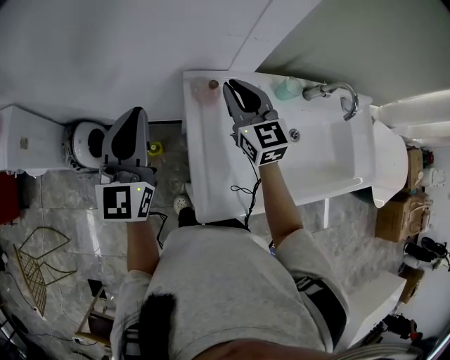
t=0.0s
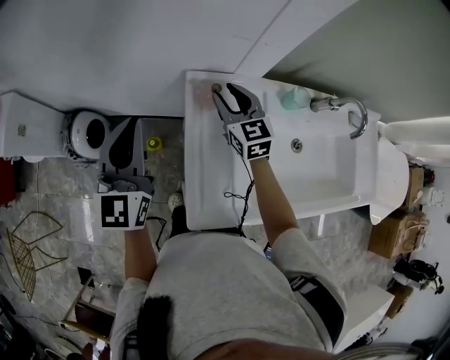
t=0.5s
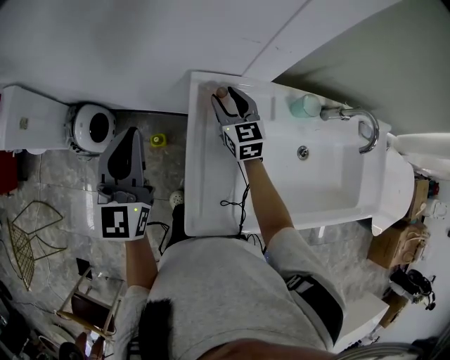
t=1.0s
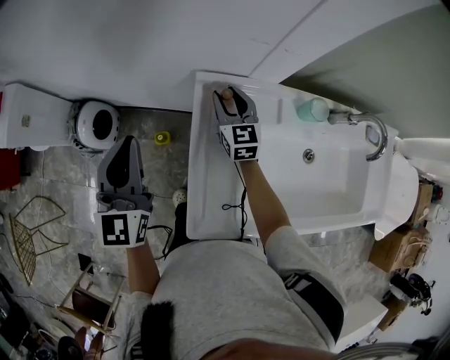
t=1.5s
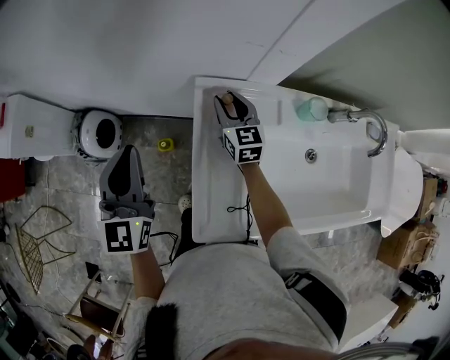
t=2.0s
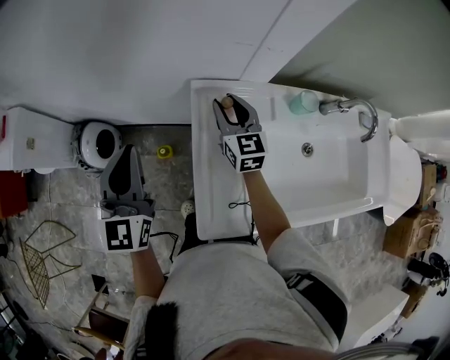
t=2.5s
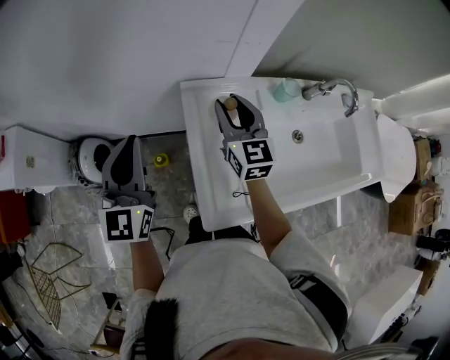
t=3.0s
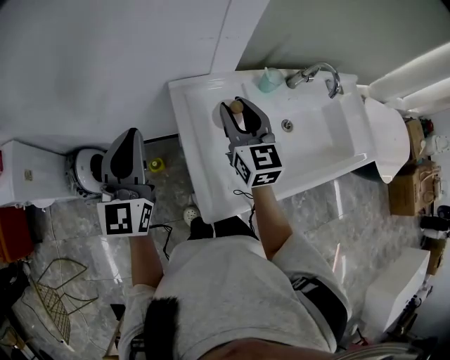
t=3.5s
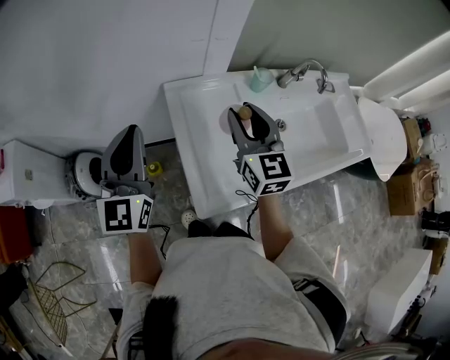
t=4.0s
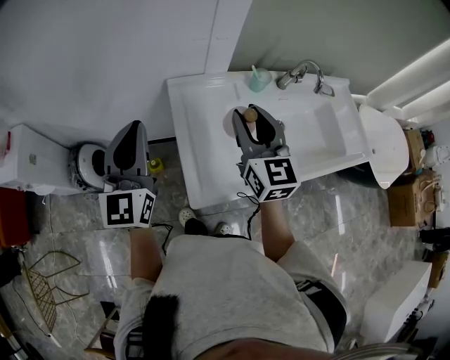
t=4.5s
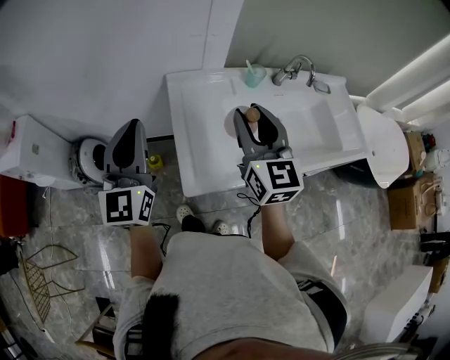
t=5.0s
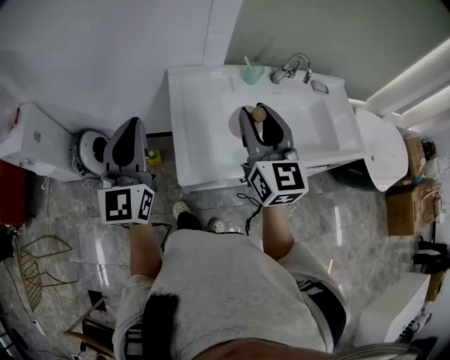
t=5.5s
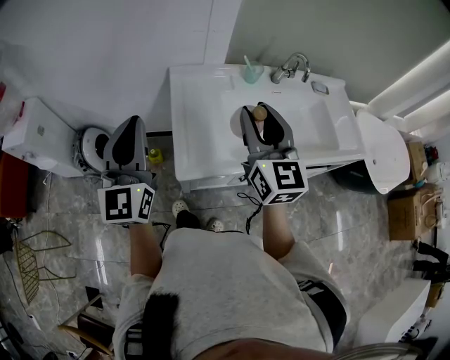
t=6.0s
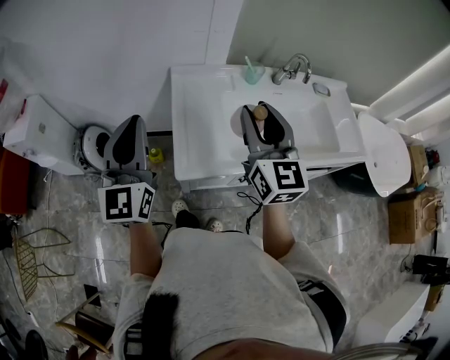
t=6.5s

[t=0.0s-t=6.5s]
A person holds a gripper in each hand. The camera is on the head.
t=0.0s to t=2.0s: The right gripper shifts some 20 cm downward and forward, and opens its fingers. The left gripper shifts roughly 5 cm downward.
t=2.0s to t=4.5s: The right gripper heads backward and upward, covering some 35 cm, and changes its angle by about 20 degrees. The left gripper travels backward, upward and to the right by some 15 cm, and swivels roughly 20 degrees.
t=4.5s to t=6.5s: Both grippers travel together backward, roughly 10 cm.

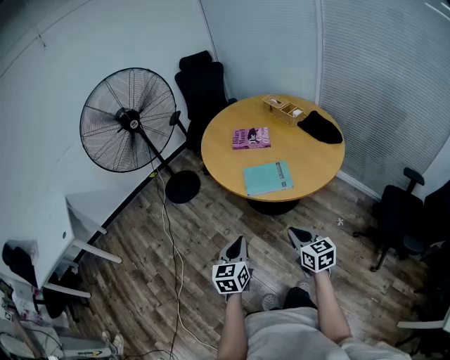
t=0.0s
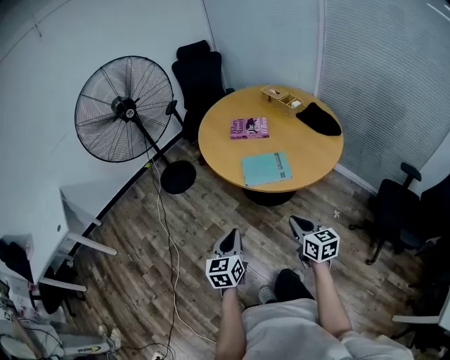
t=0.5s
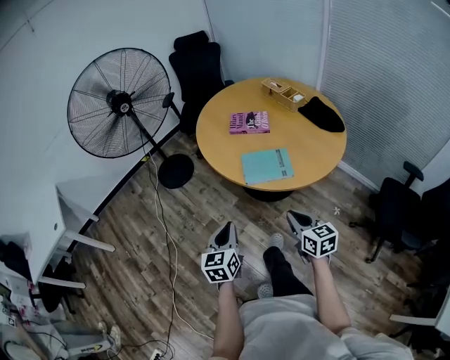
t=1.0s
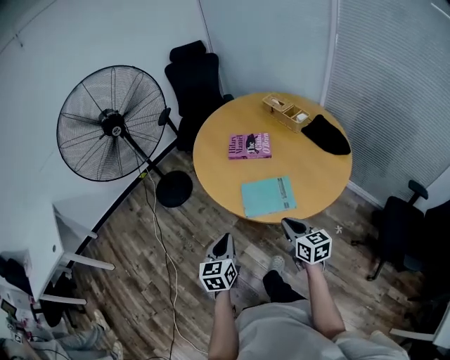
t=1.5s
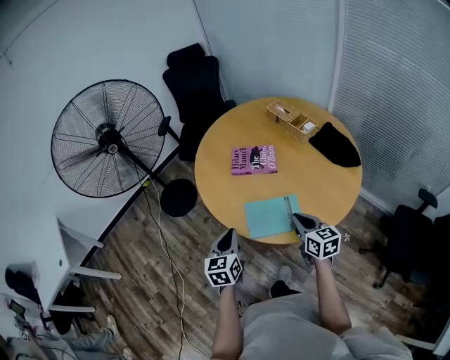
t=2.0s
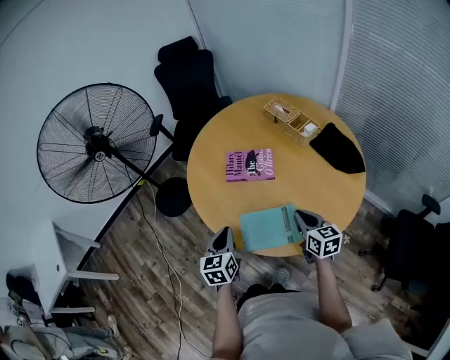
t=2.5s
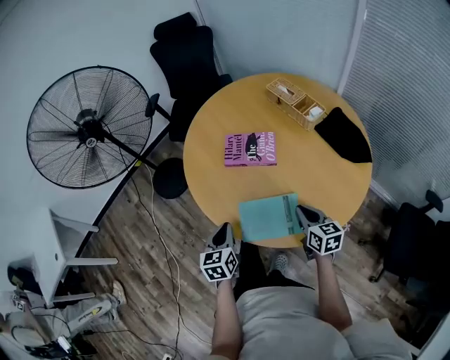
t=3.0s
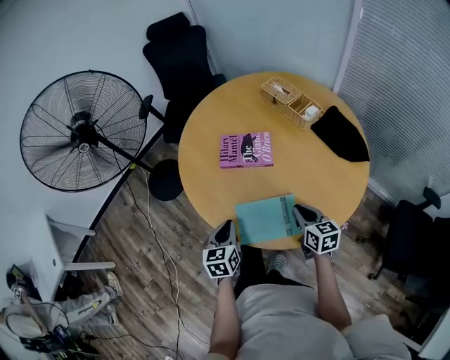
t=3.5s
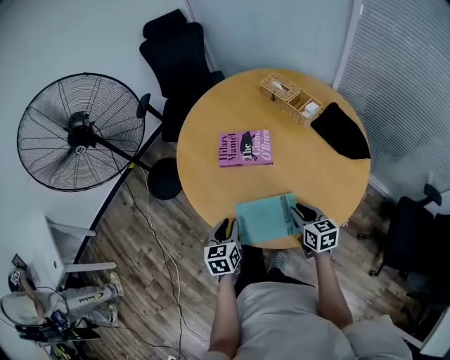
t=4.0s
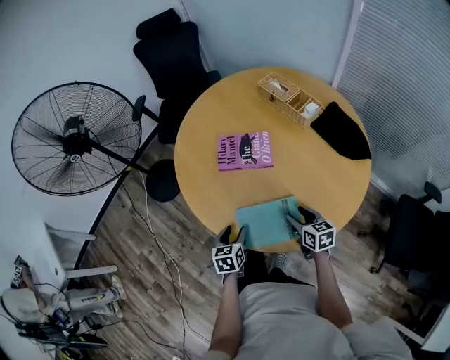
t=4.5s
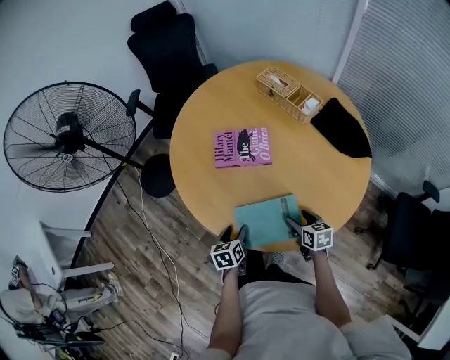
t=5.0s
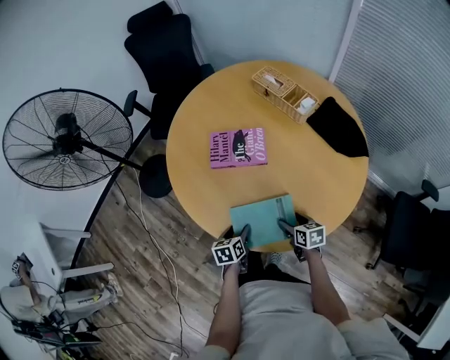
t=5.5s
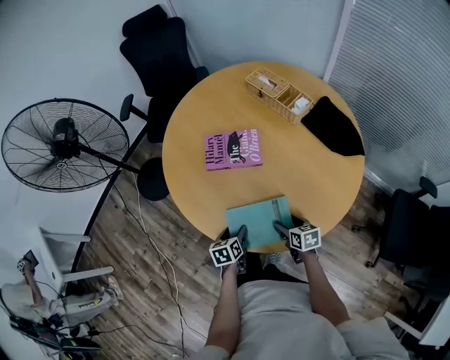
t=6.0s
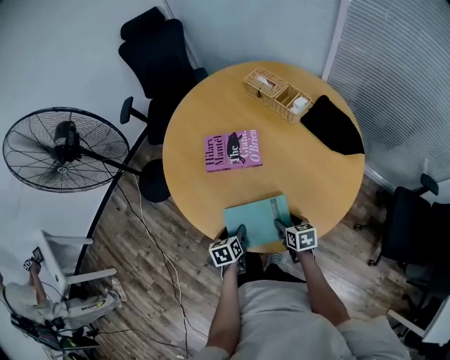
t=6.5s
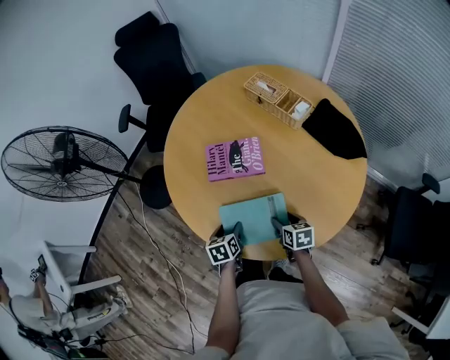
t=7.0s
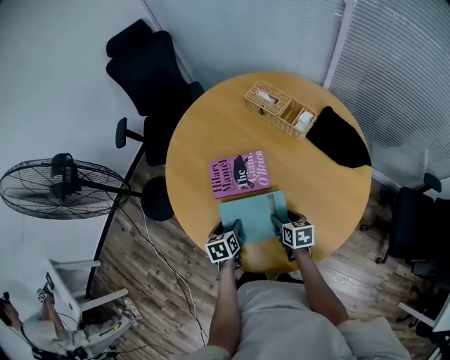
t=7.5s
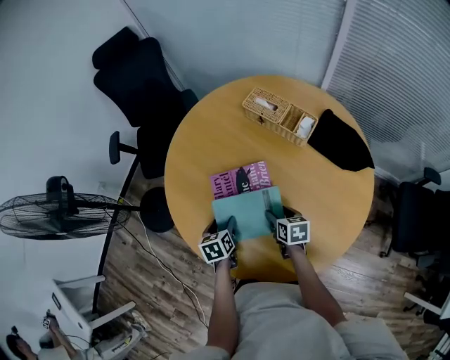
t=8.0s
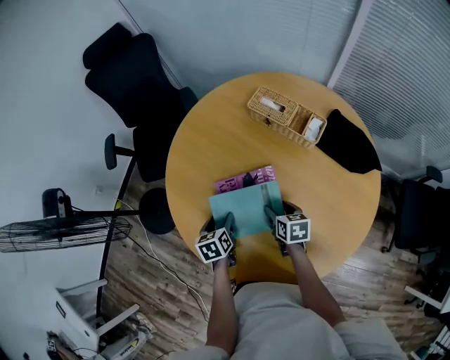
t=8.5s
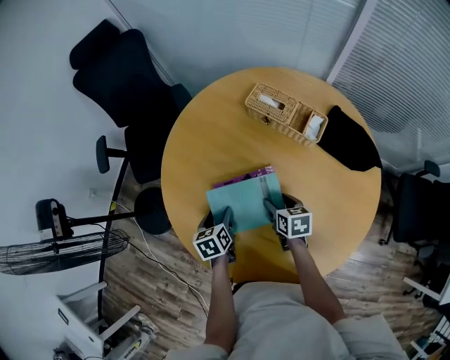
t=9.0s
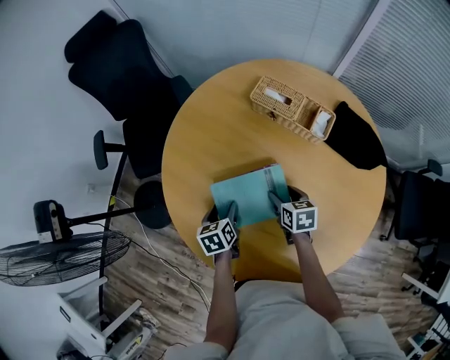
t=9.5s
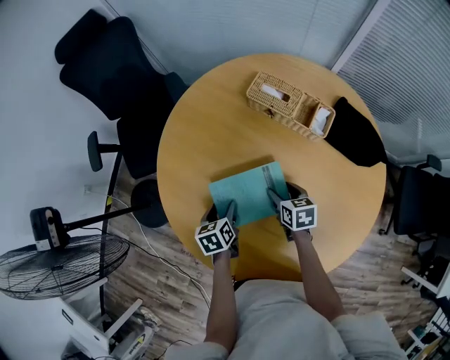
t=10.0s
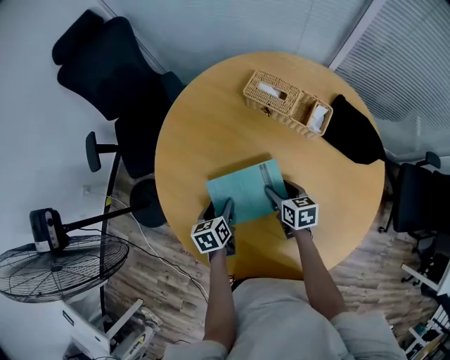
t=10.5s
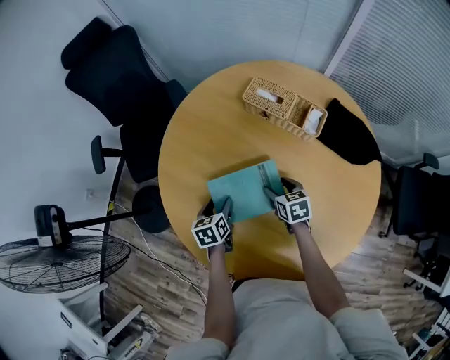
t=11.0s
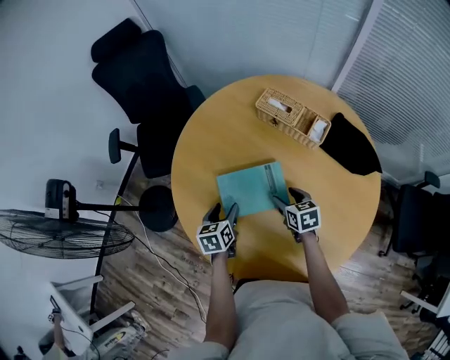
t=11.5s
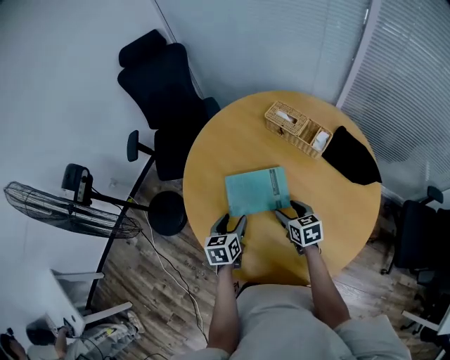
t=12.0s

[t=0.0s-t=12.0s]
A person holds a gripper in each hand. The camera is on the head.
t=0.0s to t=2.0s: Both grippers travel together forward, about 30 cm.
t=2.0s to t=4.0s: Both grippers travel together downward and forward, about 15 cm.
t=4.0s to t=6.0s: The grippers both shift downward by approximately 15 cm. The left gripper swivels about 20 degrees, and opens, while the right gripper opens.
t=6.0s to t=8.0s: The grippers both shift forward by some 20 cm.
t=8.0s to t=10.0s: The grippers both shift forward by roughly 10 cm.
t=10.0s to t=12.0s: The right gripper moves backward and upward, about 10 cm, while the left gripper shifts some 15 cm upward and backward.

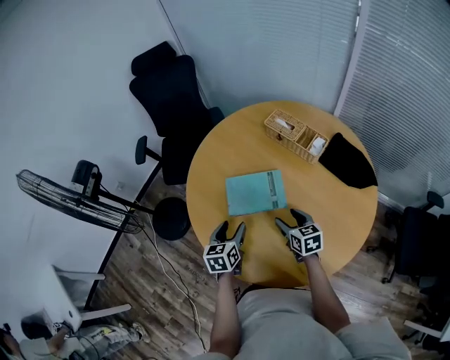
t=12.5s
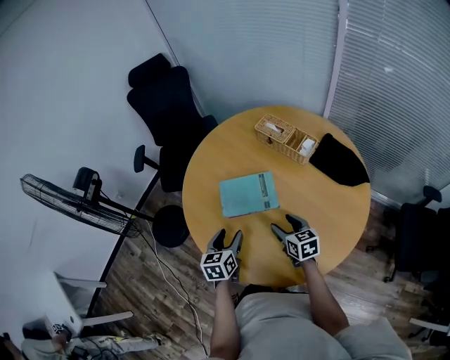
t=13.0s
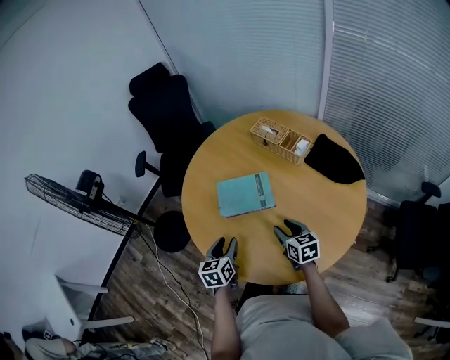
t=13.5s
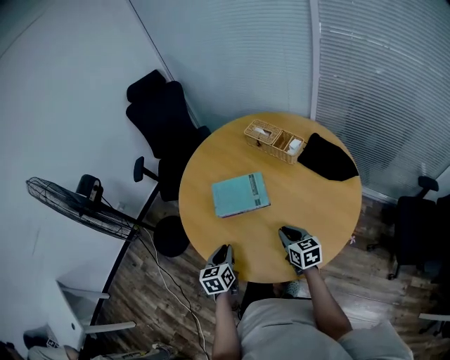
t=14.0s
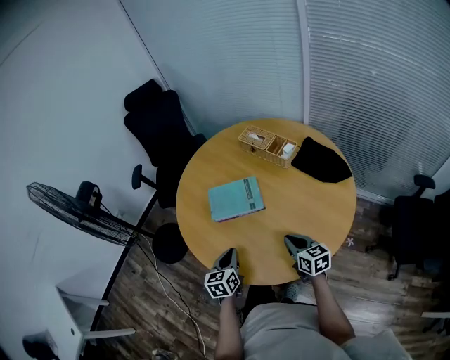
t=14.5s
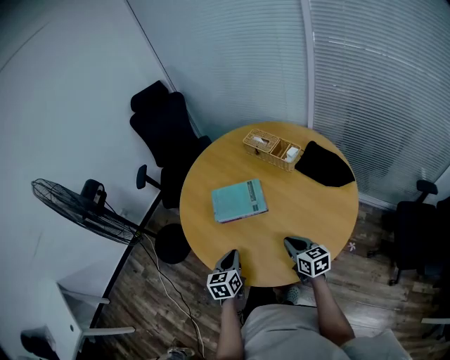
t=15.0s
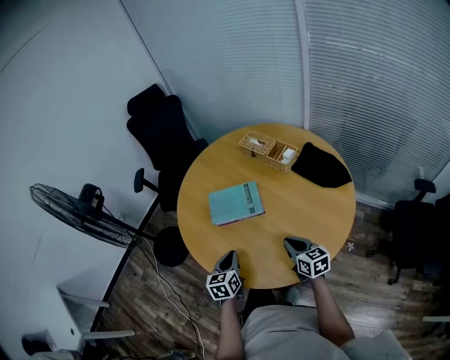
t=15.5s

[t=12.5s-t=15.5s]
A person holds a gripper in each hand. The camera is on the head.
t=12.5s to t=14.0s: The grippers both shift backward by roughly 10 cm. The right gripper closes; the left gripper closes up.
t=14.0s to t=15.5s: The grippers move only a little.

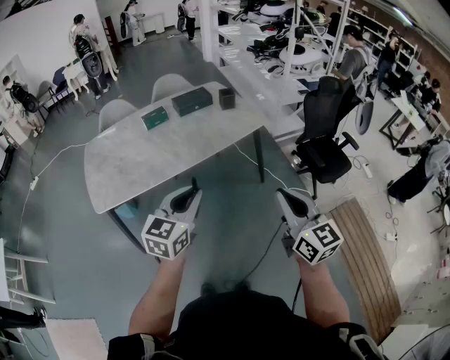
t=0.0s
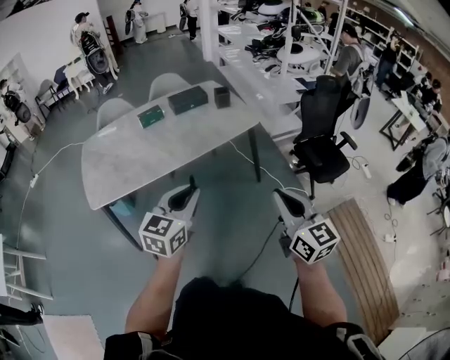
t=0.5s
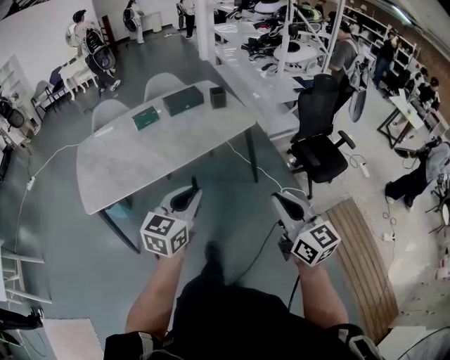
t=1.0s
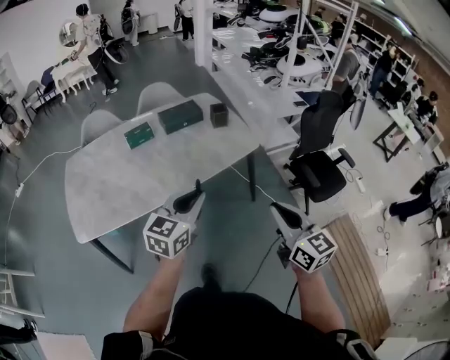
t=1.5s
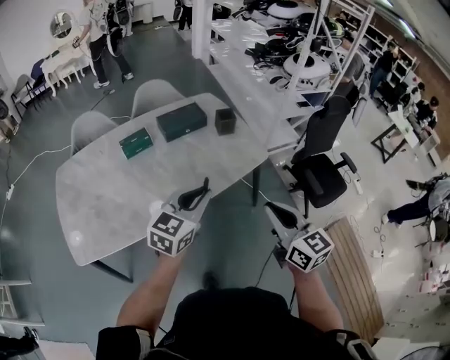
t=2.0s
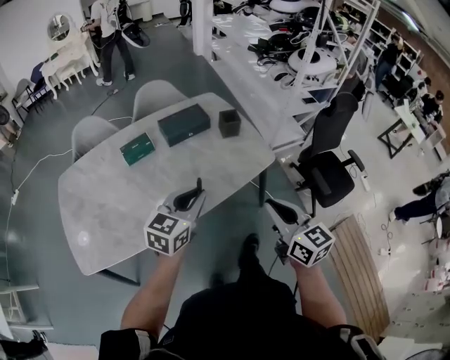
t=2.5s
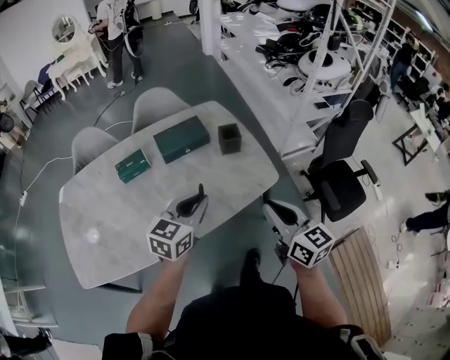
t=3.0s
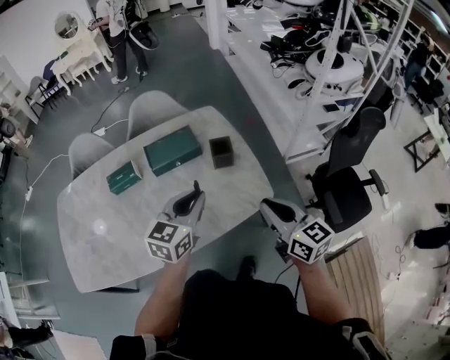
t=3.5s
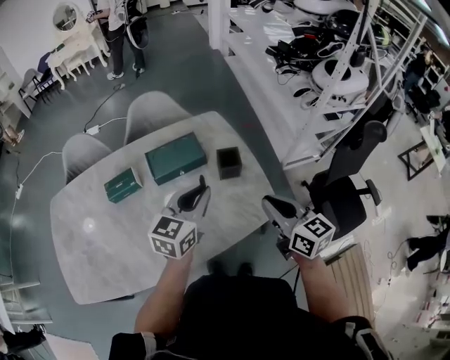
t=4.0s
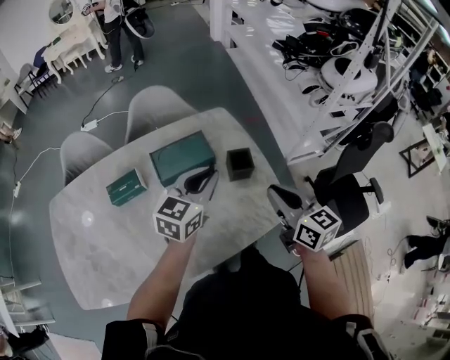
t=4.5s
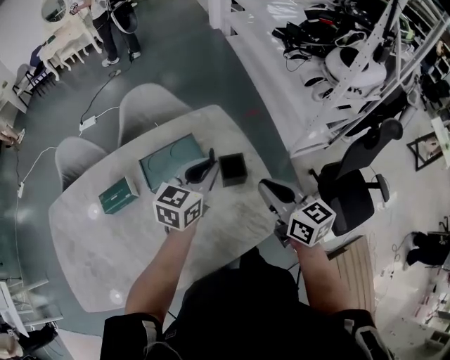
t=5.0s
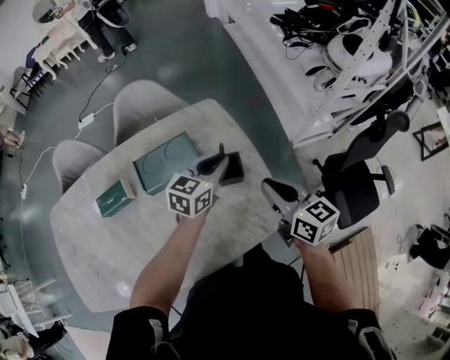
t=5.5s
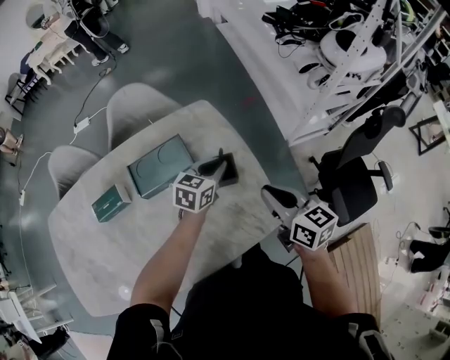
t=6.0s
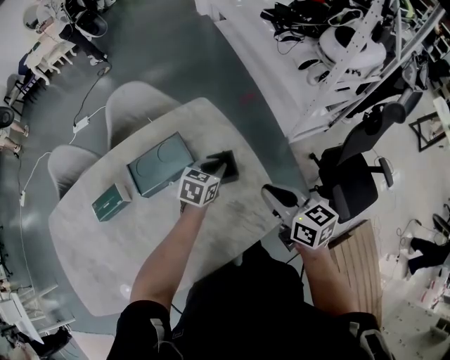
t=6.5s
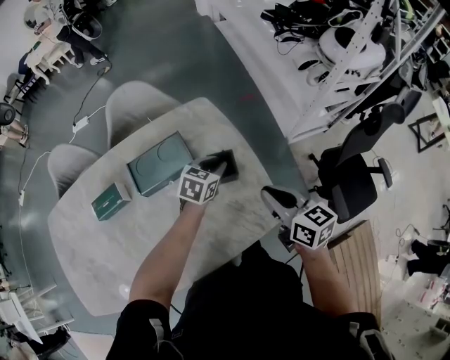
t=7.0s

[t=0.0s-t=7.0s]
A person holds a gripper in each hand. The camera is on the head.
t=0.0s to t=2.0s: The two grippers go roughly 30 cm forward.
t=2.0s to t=3.5s: The two grippers go some 30 cm forward.
t=3.5s to t=5.0s: The two grippers go roughly 25 cm forward.
t=5.0s to t=7.0s: The right gripper goes roughly 5 cm downward; the left gripper goes about 15 cm downward, and rotates roughly 20 degrees.
